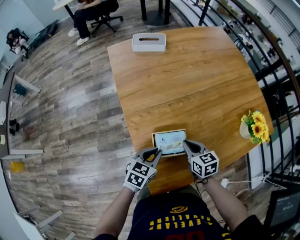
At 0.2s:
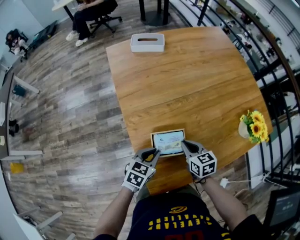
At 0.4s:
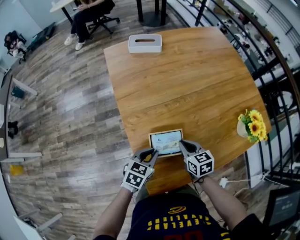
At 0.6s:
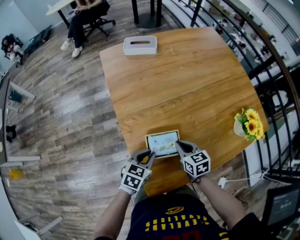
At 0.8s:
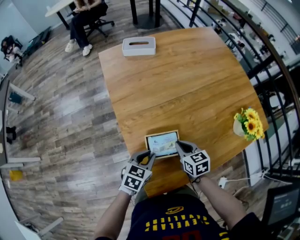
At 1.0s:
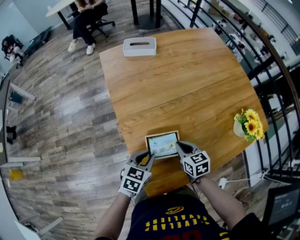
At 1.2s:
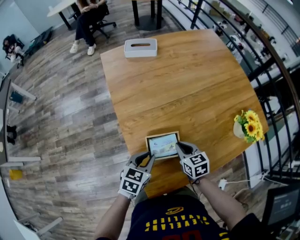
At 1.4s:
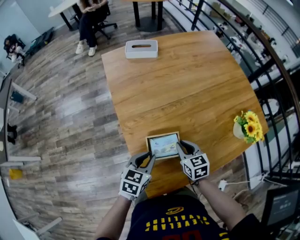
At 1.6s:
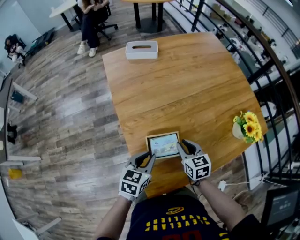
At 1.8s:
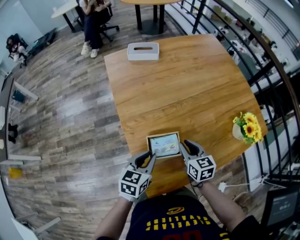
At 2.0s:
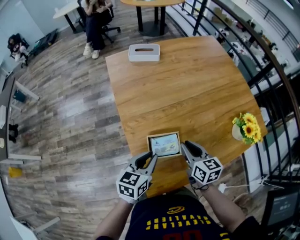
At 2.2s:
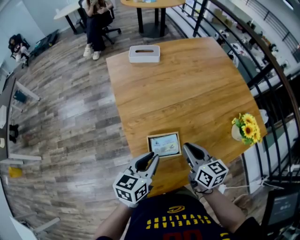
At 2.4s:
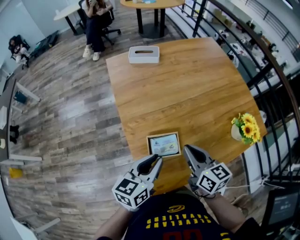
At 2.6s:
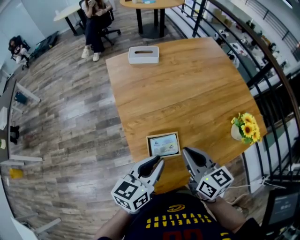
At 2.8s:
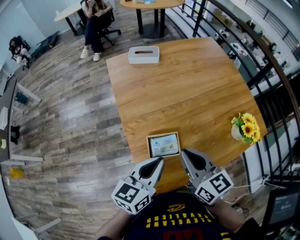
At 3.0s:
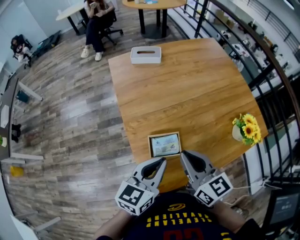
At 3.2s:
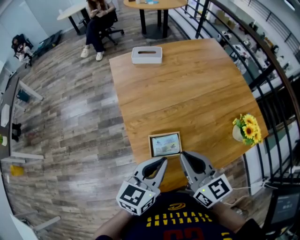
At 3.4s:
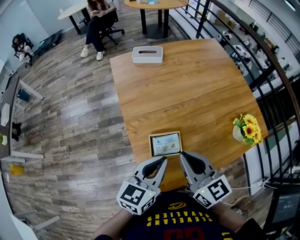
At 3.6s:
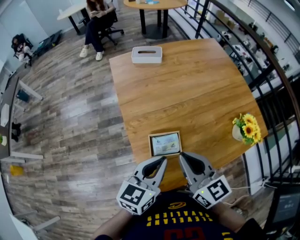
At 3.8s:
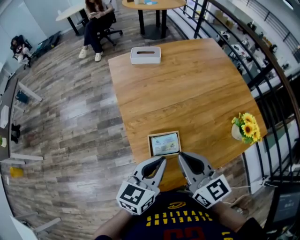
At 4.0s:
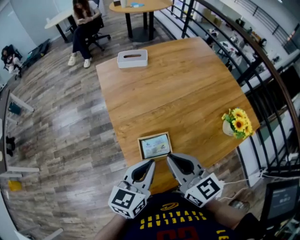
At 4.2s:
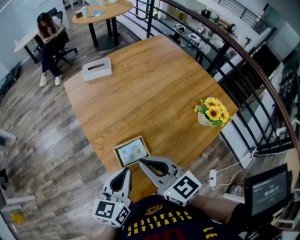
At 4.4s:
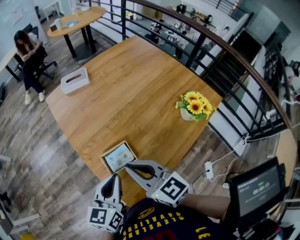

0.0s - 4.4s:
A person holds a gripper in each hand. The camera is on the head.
0.0s - 1.4s: The grippers stay close to where they were, moving slightly.
1.4s - 3.0s: Both grippers travel together upward, roughly 20 cm. The right gripper turns by about 30 degrees. Meanwhile the left gripper changes its angle by approximately 20 degrees.
3.0s - 4.4s: The grippers stay close to where they were, moving slightly.

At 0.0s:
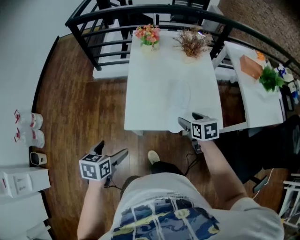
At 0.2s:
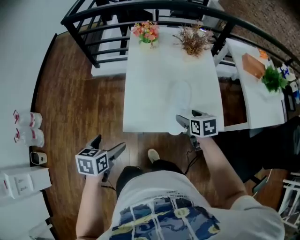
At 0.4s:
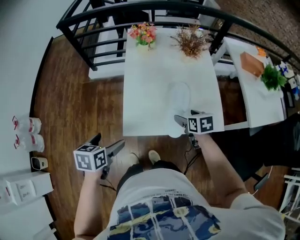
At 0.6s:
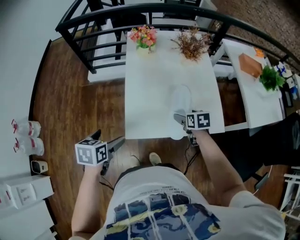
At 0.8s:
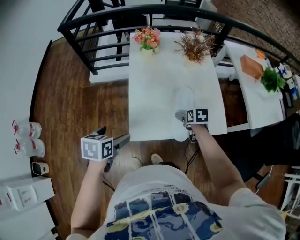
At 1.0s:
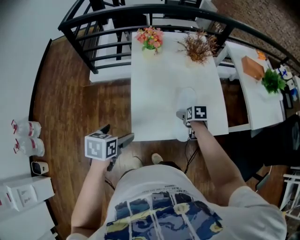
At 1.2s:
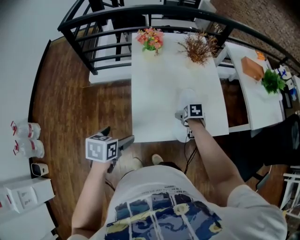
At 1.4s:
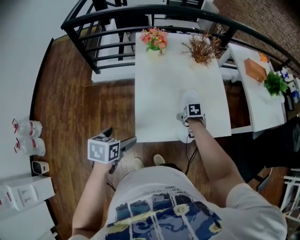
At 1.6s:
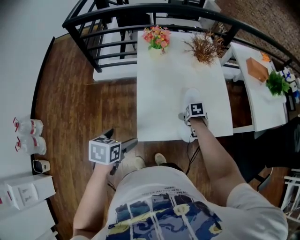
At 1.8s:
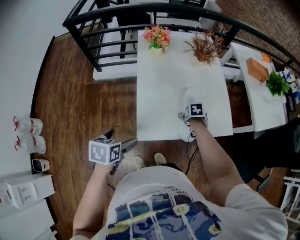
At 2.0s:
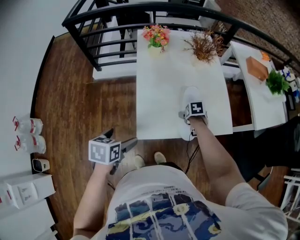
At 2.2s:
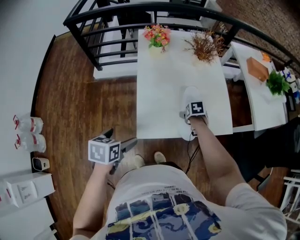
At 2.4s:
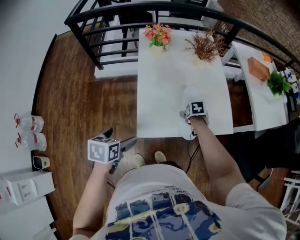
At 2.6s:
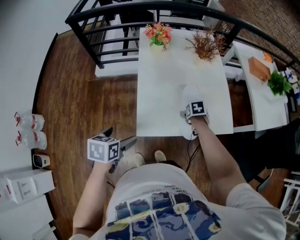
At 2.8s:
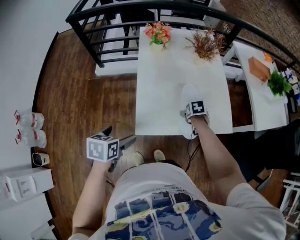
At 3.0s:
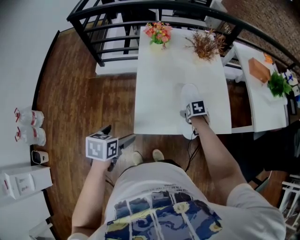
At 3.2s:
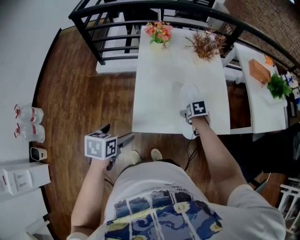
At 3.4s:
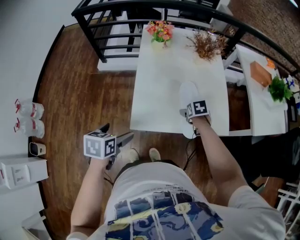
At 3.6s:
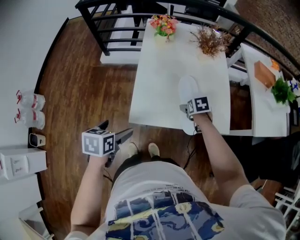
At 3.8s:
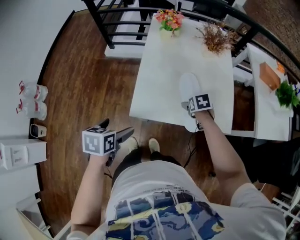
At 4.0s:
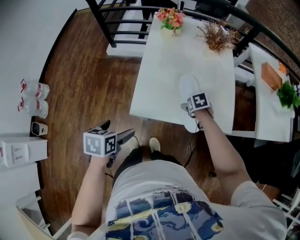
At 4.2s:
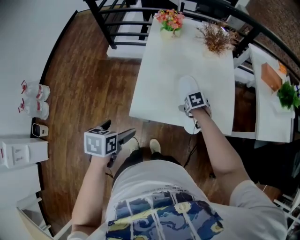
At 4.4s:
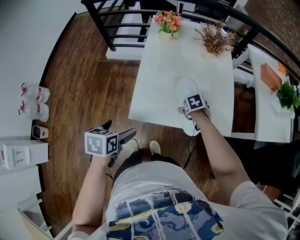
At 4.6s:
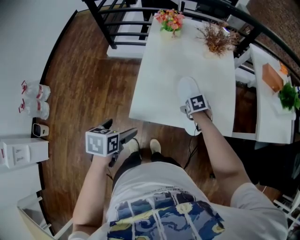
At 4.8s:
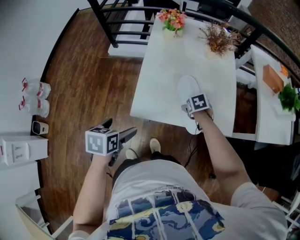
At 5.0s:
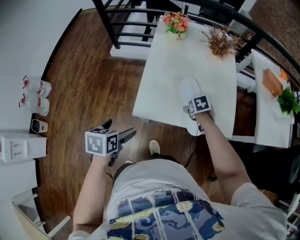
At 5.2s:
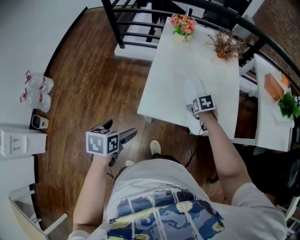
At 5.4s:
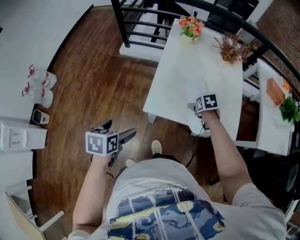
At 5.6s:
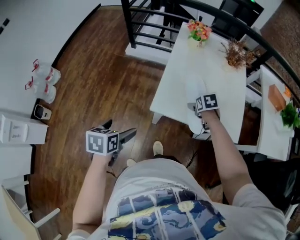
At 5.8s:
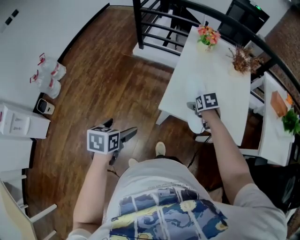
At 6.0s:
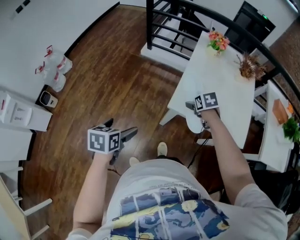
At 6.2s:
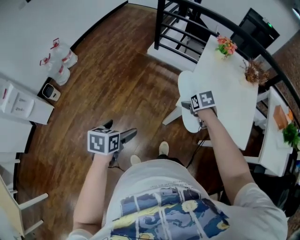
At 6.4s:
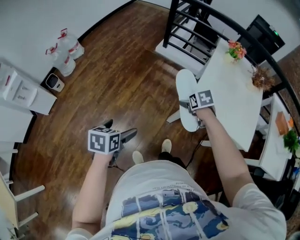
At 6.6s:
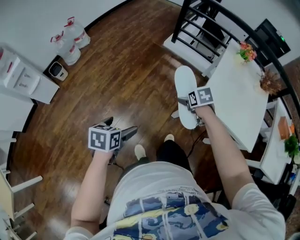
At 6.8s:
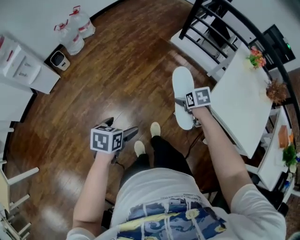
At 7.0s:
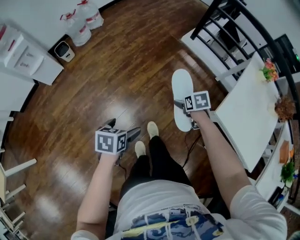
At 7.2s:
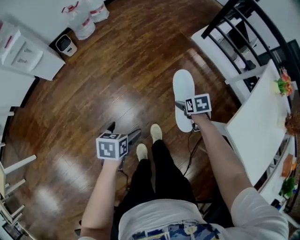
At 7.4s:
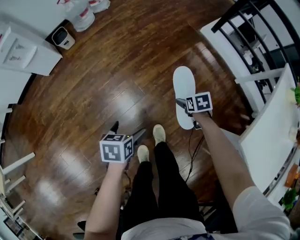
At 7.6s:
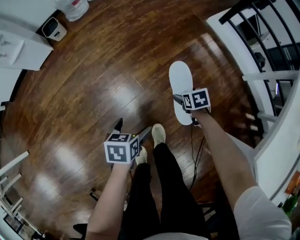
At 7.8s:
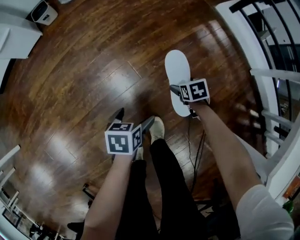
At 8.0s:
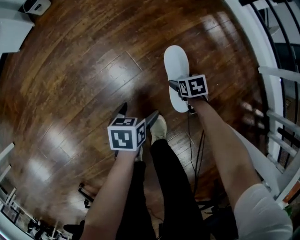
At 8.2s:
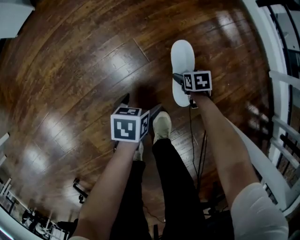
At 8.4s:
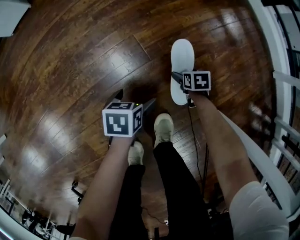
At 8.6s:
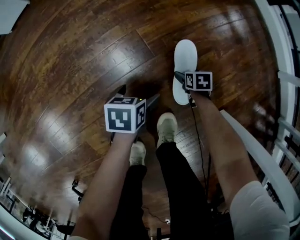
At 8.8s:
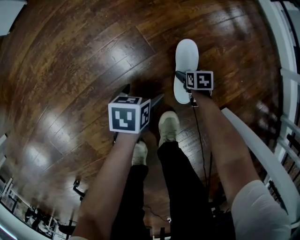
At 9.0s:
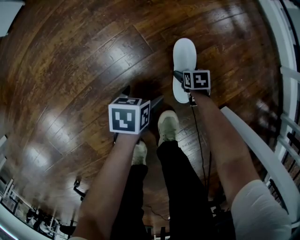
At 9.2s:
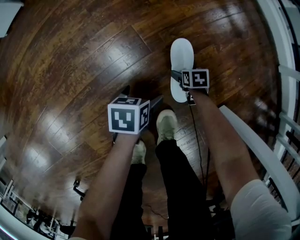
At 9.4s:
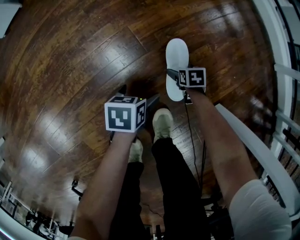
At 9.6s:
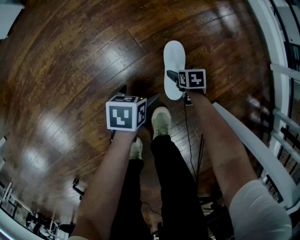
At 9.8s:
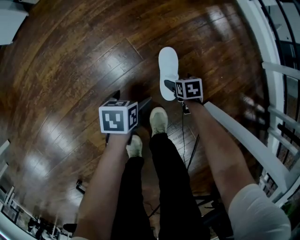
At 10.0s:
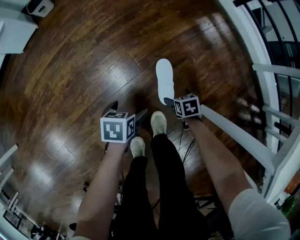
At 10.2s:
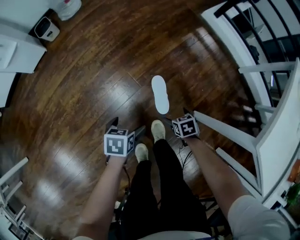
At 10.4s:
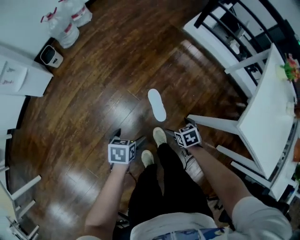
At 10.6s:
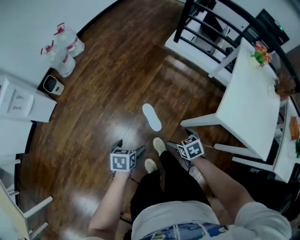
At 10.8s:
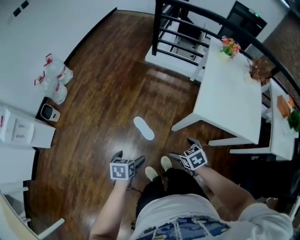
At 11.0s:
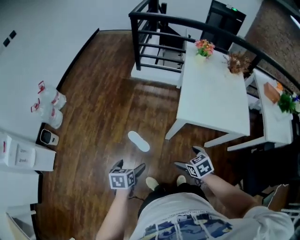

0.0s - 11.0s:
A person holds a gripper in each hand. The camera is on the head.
0.0s - 1.6s: The right gripper heads downward, covering approximately 15 cm, swivels roughly 30 degrees, and opens its fingers; the left gripper moves about 15 cm.
1.6s - 3.2s: The grippers make only small movements.
3.2s - 4.8s: The left gripper ends up about 5 cm from where it was.
4.8s - 6.2s: The left gripper changes place by approximately 30 cm. The right gripper ends up roughly 35 cm from where it was, and turns by approximately 20 degrees.
6.2s - 7.8s: Both grippers move downward, about 60 cm. The left gripper rotates approximately 30 degrees; the right gripper turns by approximately 30 degrees.
7.8s - 9.4s: The two grippers go some 30 cm downward.
9.4s - 11.0s: The grippers both shift upward by approximately 80 cm. The right gripper rotates roughly 30 degrees; the left gripper turns by approximately 40 degrees.

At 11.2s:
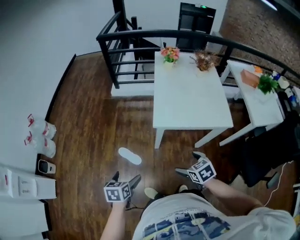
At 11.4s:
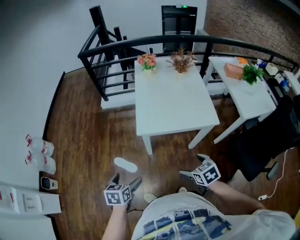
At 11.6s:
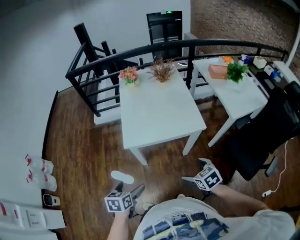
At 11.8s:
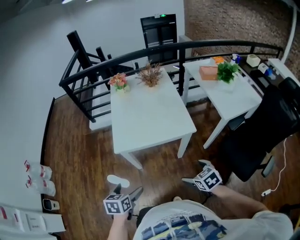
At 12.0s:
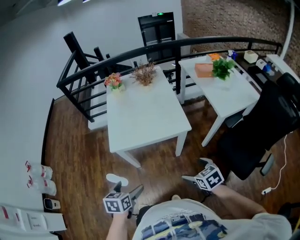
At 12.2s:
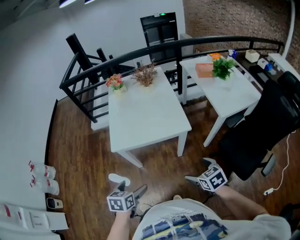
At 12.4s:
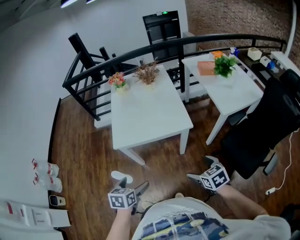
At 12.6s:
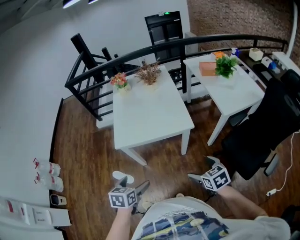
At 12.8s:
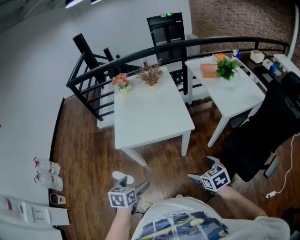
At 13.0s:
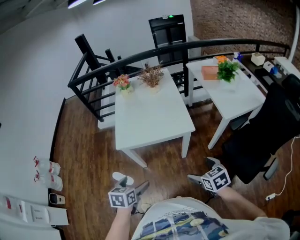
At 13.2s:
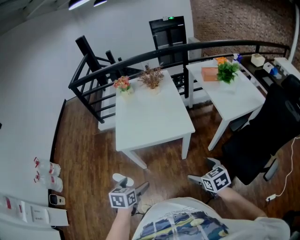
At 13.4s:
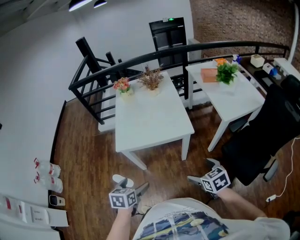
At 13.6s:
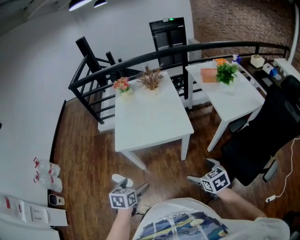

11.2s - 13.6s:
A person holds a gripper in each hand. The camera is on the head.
11.2s - 12.4s: Both grippers move to the right, some 40 cm.
12.4s - 13.6s: There are only small adjustments of the grippers.

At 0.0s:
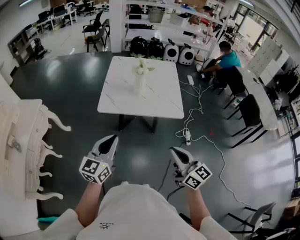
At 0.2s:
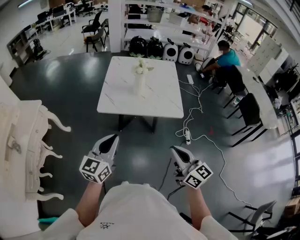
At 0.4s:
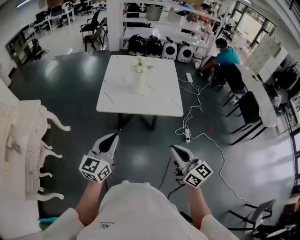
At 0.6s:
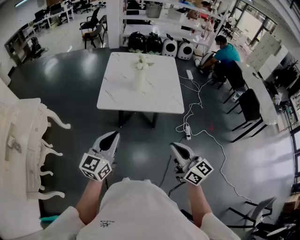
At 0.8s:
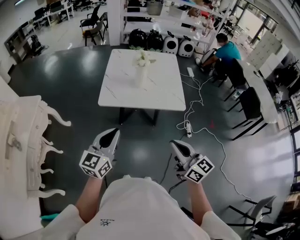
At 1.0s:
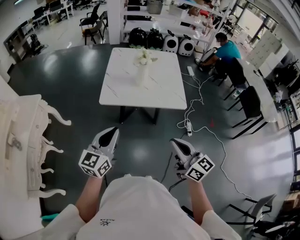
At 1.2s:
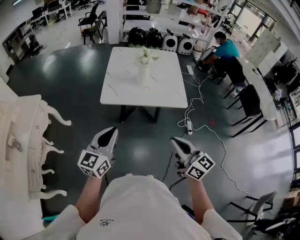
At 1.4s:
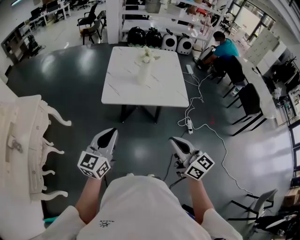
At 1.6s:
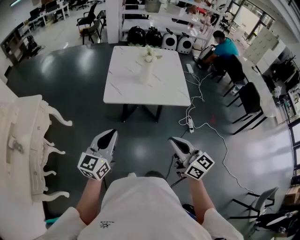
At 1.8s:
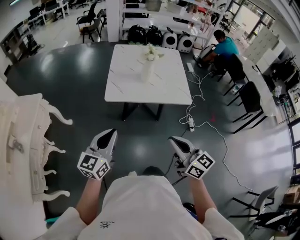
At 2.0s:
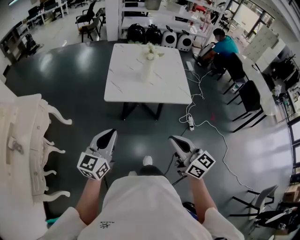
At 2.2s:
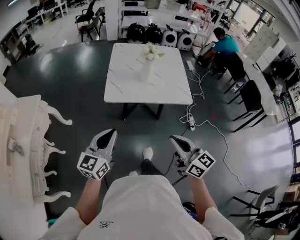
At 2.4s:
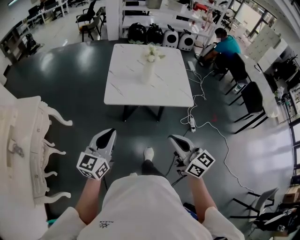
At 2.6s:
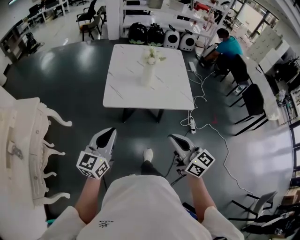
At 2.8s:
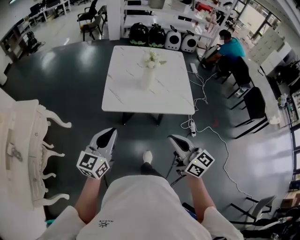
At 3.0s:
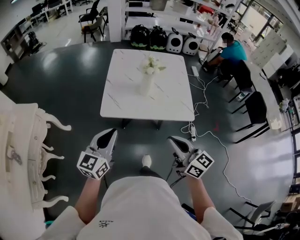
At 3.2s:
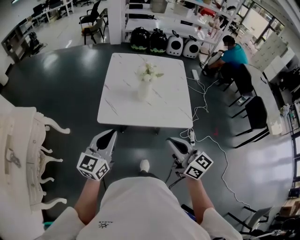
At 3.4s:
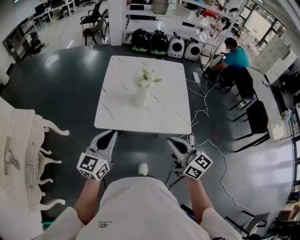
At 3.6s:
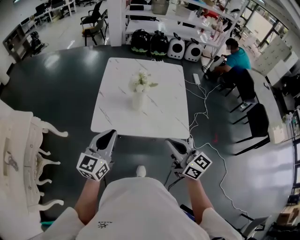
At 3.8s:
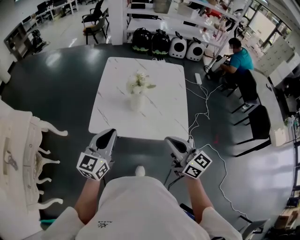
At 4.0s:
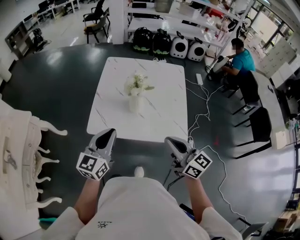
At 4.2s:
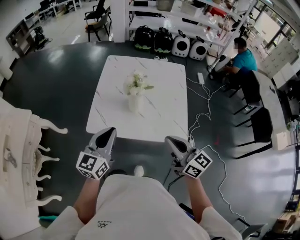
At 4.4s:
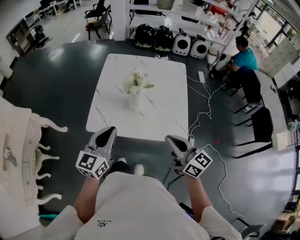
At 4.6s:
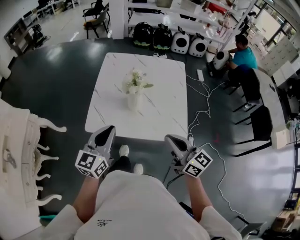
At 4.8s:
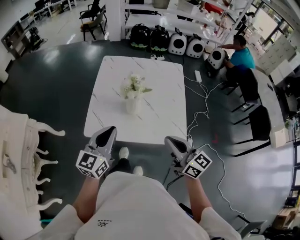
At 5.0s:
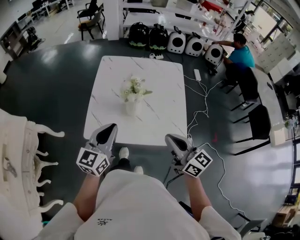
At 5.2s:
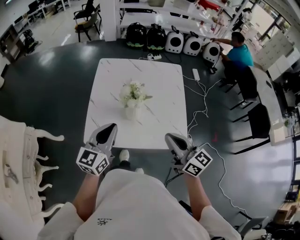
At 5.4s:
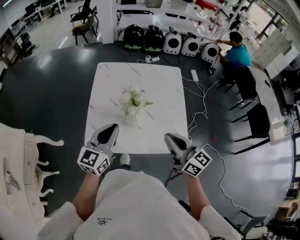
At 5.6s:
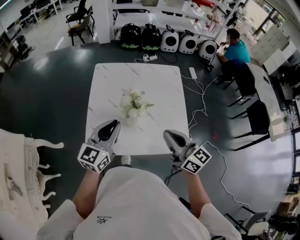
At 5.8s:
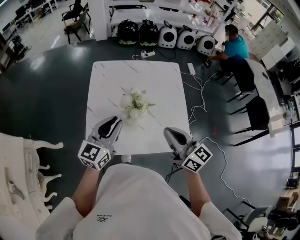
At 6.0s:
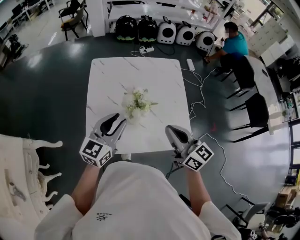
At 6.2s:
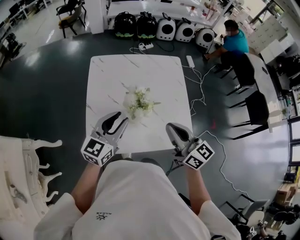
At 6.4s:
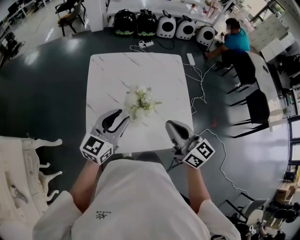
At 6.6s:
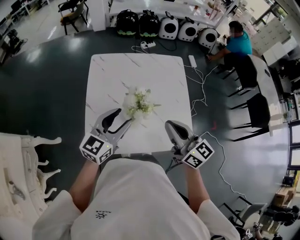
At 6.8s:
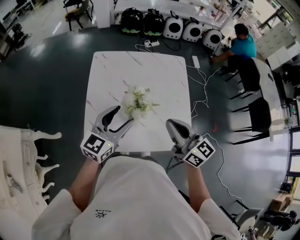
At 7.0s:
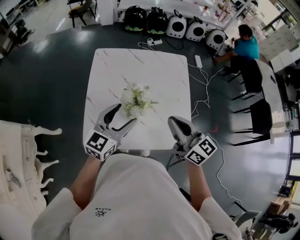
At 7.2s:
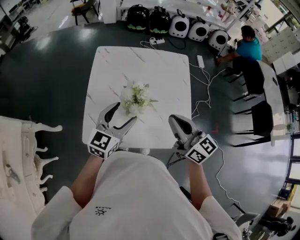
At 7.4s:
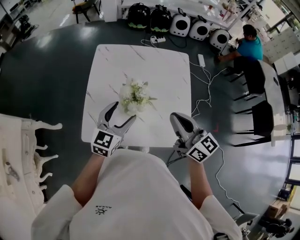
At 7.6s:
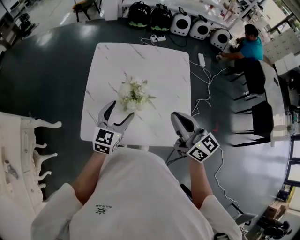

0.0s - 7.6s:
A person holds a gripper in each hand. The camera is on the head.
0.0s - 1.6s: Both grippers move to the left, some 10 cm.
1.6s - 3.0s: Both grippers travel together forward, roughly 15 cm.
3.0s - 4.6s: The grippers both shift forward and to the right by some 20 cm.
4.6s - 6.0s: Both grippers travel together forward, roughly 15 cm.
6.0s - 7.6s: The right gripper shifts by some 5 cm. The left gripper shifts approximately 5 cm downward, and opens its fingers.
